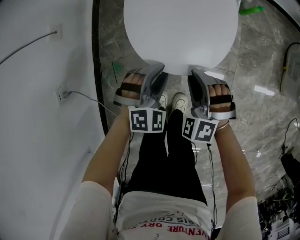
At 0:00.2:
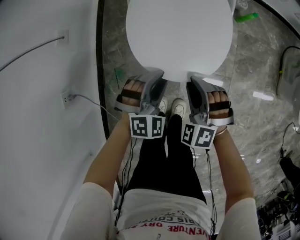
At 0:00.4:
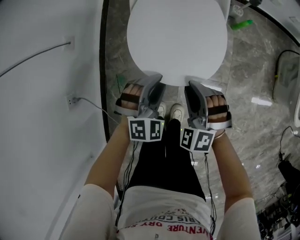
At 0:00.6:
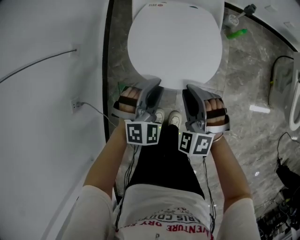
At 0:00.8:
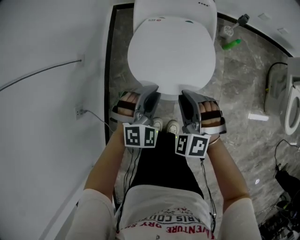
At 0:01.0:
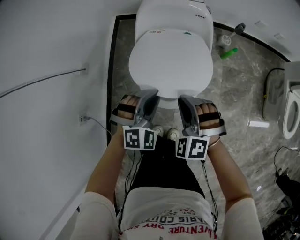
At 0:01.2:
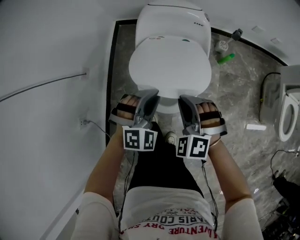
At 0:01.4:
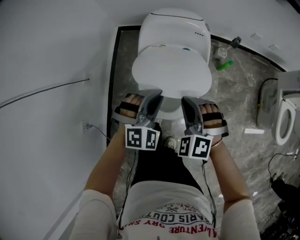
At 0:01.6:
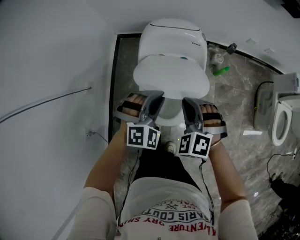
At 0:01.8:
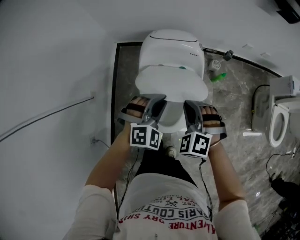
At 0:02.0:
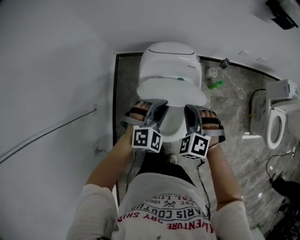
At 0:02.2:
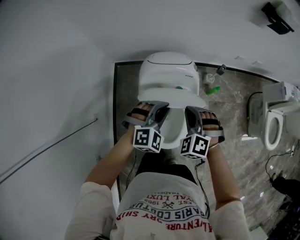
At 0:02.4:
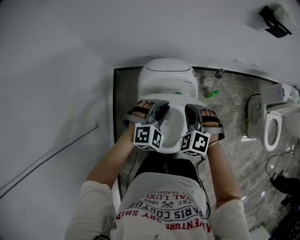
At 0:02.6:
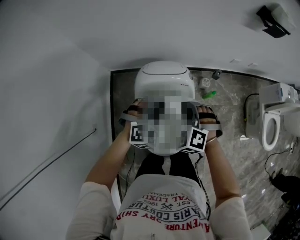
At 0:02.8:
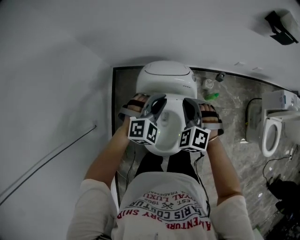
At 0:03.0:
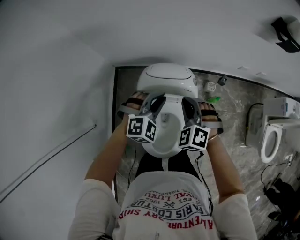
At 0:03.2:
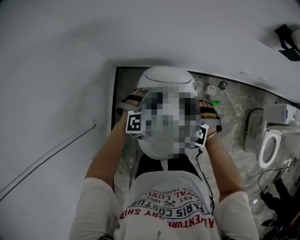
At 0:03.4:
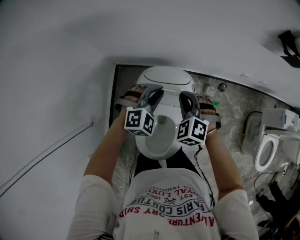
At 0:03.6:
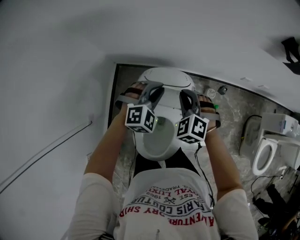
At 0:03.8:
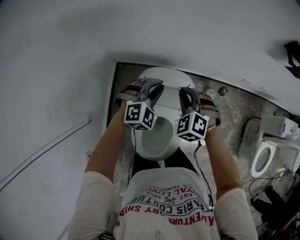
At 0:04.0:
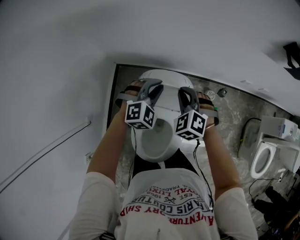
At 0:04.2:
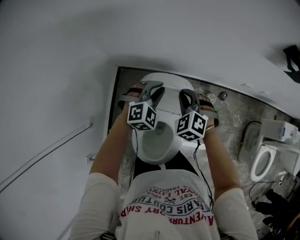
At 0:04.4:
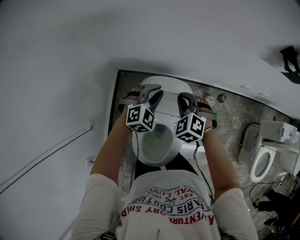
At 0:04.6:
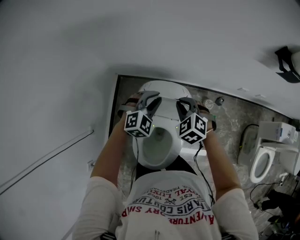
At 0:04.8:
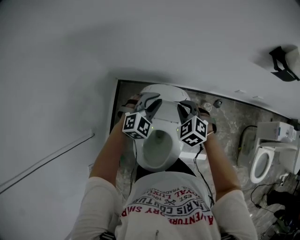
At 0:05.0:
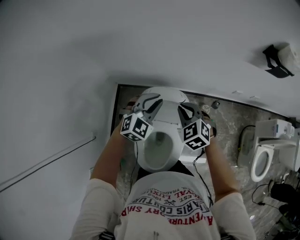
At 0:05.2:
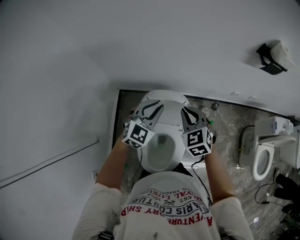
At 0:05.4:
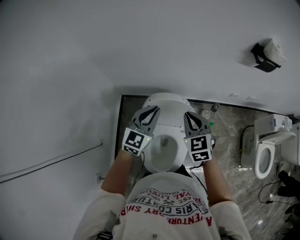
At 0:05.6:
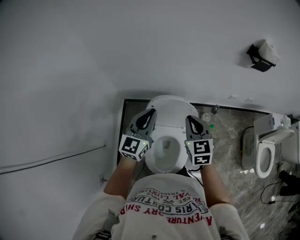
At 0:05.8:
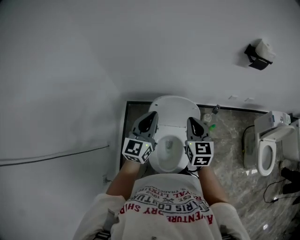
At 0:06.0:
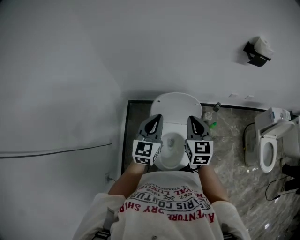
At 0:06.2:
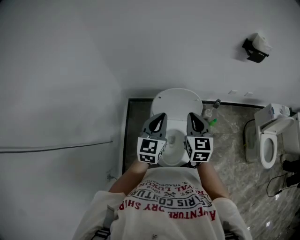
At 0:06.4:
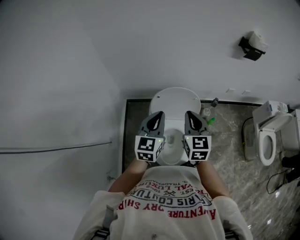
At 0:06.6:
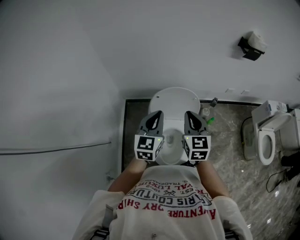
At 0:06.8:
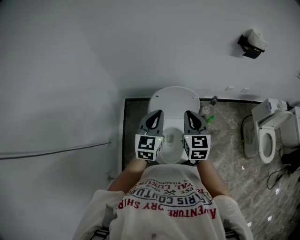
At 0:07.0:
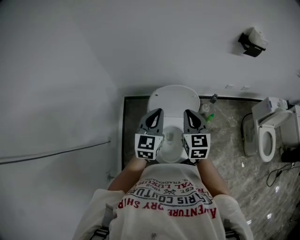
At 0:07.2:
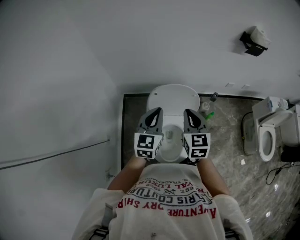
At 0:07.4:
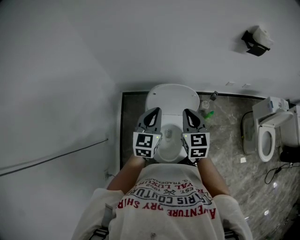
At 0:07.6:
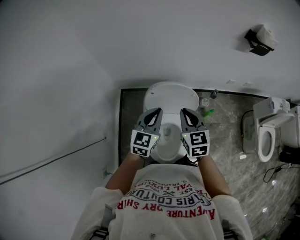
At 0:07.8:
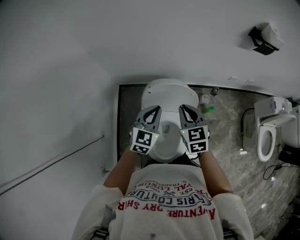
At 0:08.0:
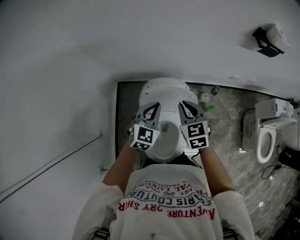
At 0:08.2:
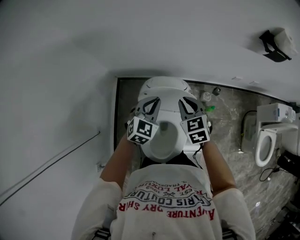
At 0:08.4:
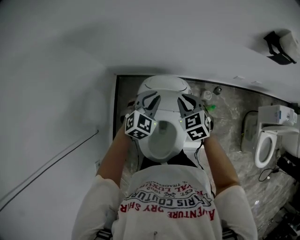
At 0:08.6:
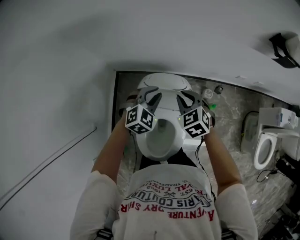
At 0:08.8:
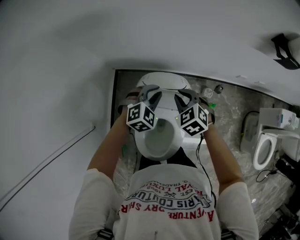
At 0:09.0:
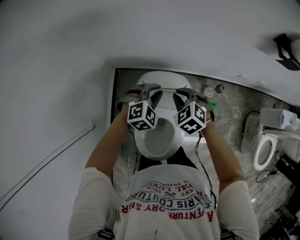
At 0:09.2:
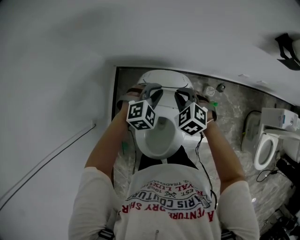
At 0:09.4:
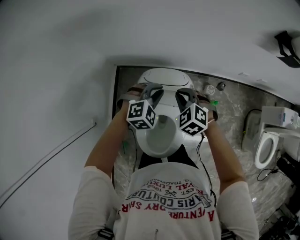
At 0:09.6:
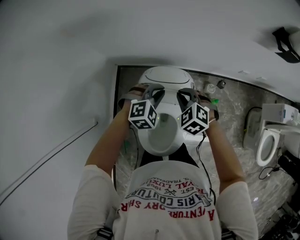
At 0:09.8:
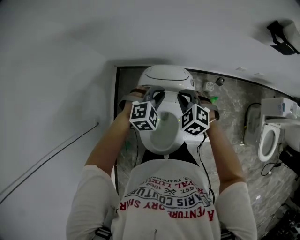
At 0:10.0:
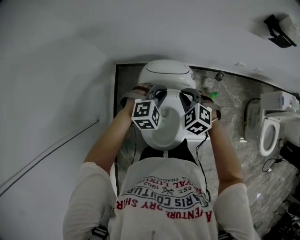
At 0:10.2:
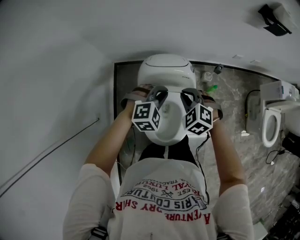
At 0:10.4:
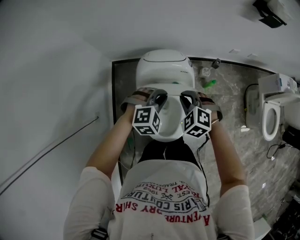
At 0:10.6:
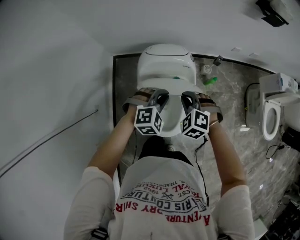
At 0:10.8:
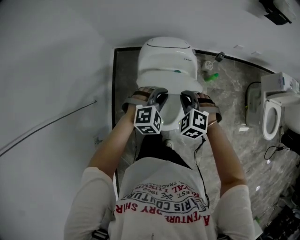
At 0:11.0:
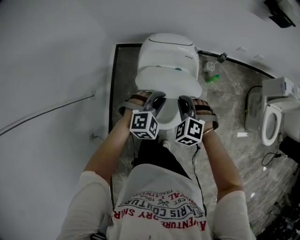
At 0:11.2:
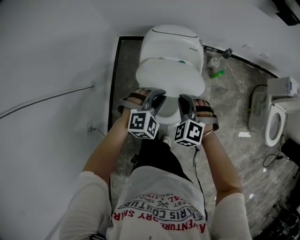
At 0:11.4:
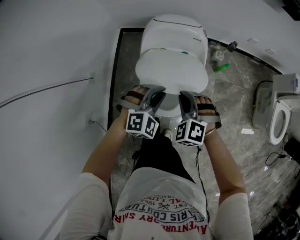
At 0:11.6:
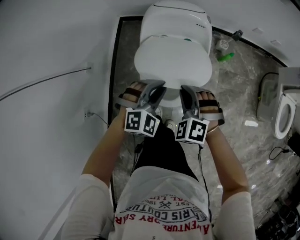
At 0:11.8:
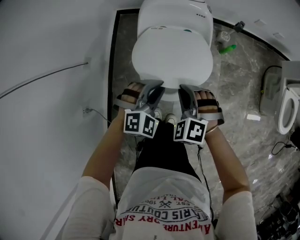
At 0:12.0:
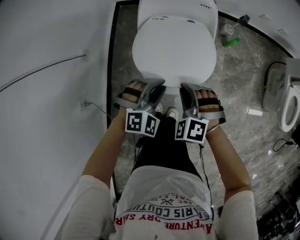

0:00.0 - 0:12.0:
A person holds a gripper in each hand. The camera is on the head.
0:00.0 - 0:01.6: Both grippers travel together upward and forward, some 35 cm. The left gripper closes its fingers.
0:01.6 - 0:03.0: Both grippers move forward, approximately 25 cm.
0:03.0 - 0:04.4: Both grippers travel together forward, some 10 cm.
0:04.4 - 0:06.0: Both grippers move backward and upward, about 30 cm. The right gripper twists approximately 50 degrees clockwise, seen from behind. Meanwhile the left gripper angles its fingers upward, by some 30 degrees.
0:06.0 - 0:07.6: The left gripper heads downward, covering approximately 5 cm. Meanwhile the right gripper changes place by approximately 5 cm.
0:07.6 - 0:09.0: Both grippers travel together forward and downward, approximately 20 cm. The left gripper tilts its fingers some 30 degrees downward. The right gripper turns by approximately 40 degrees.
0:09.0 - 0:10.4: The grippers both shift backward by about 20 cm.
0:10.4 - 0:12.0: Both grippers travel together backward and downward, some 30 cm.

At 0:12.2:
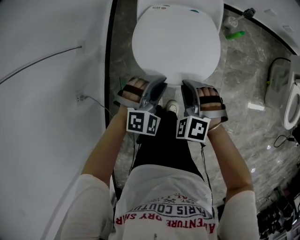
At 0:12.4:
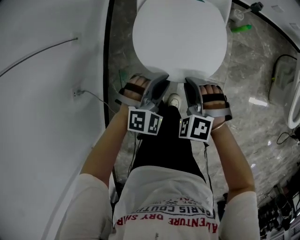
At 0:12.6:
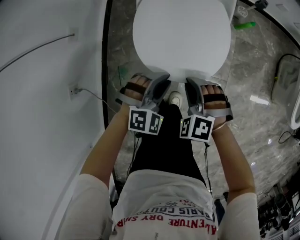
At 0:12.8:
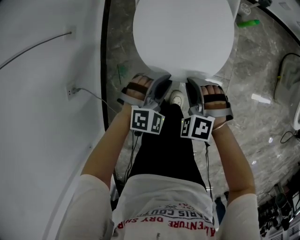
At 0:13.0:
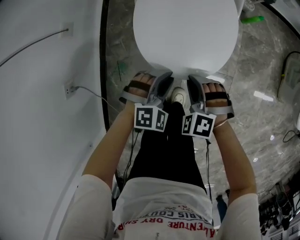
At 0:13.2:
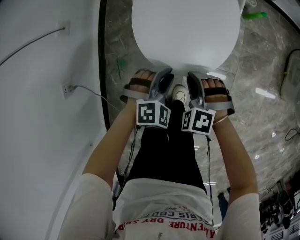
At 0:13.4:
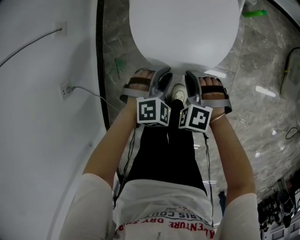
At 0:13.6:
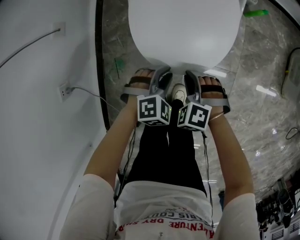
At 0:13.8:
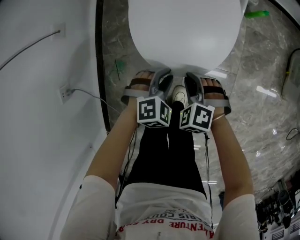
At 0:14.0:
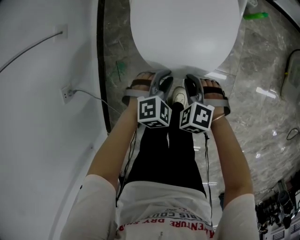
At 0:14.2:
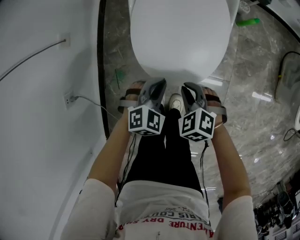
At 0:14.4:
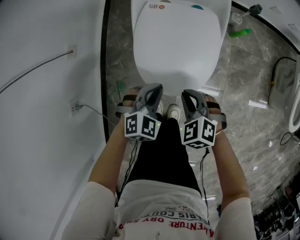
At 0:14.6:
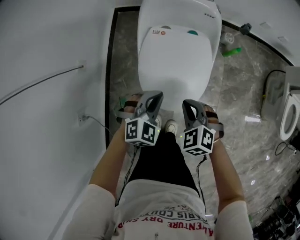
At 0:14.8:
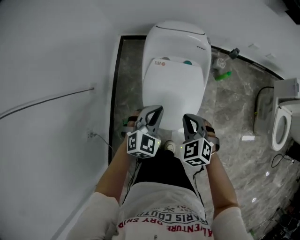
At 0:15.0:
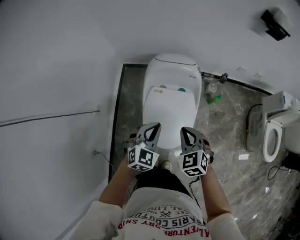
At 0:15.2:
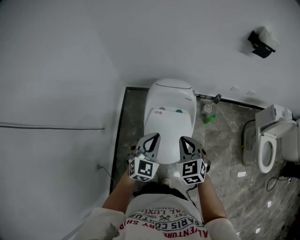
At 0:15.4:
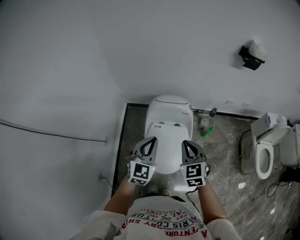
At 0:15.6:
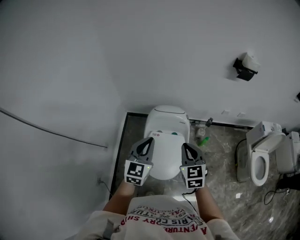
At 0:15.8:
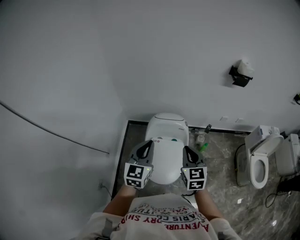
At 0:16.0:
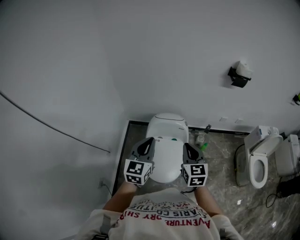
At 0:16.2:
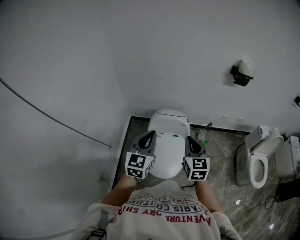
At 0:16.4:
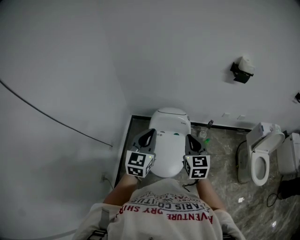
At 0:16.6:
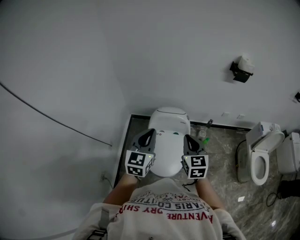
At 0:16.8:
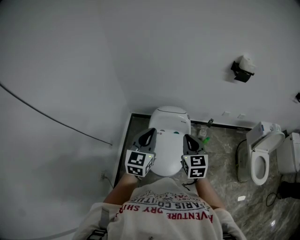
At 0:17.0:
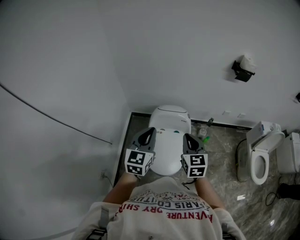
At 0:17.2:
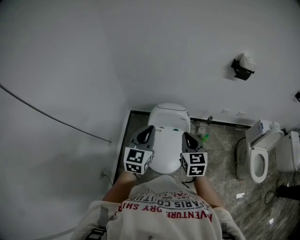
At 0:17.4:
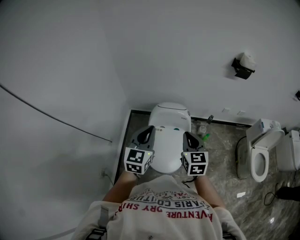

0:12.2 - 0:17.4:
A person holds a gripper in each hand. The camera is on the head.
0:12.2 - 0:14.0: Both grippers move downward, roughly 20 cm. The left gripper changes its angle by approximately 20 degrees.
0:14.0 - 0:15.6: Both grippers travel together upward, some 60 cm. The right gripper points its fingers about 40 degrees further upward. The left gripper tilts its fingers approximately 50 degrees upward, and closes its fingers.
0:15.6 - 0:17.4: The two grippers go about 5 cm upward.

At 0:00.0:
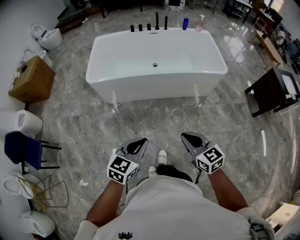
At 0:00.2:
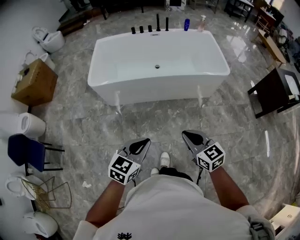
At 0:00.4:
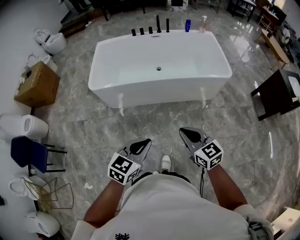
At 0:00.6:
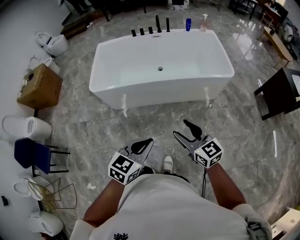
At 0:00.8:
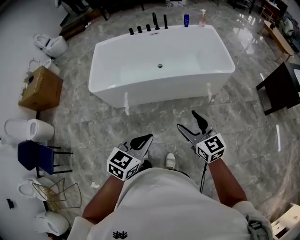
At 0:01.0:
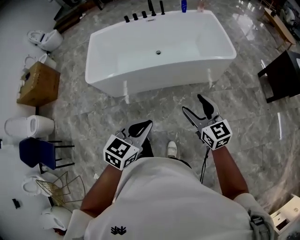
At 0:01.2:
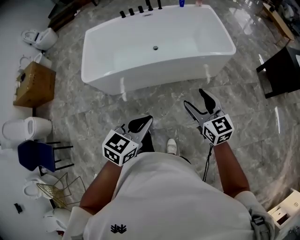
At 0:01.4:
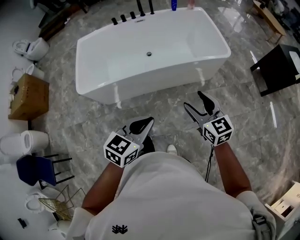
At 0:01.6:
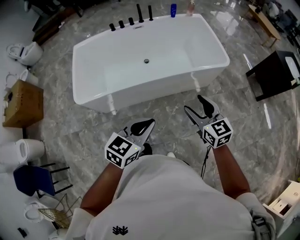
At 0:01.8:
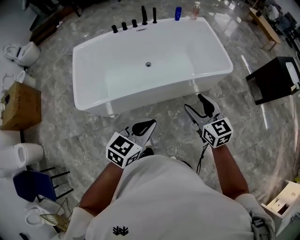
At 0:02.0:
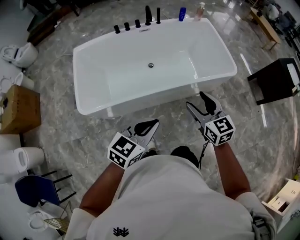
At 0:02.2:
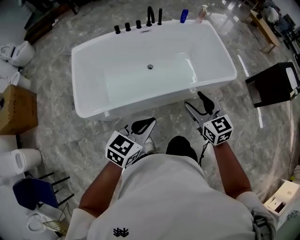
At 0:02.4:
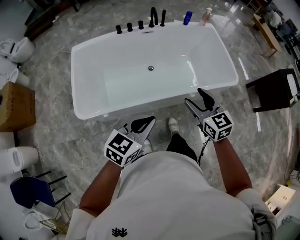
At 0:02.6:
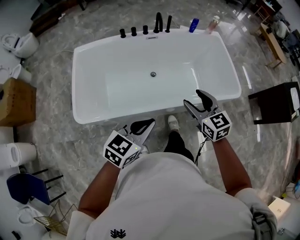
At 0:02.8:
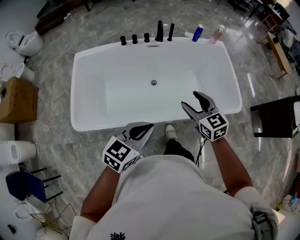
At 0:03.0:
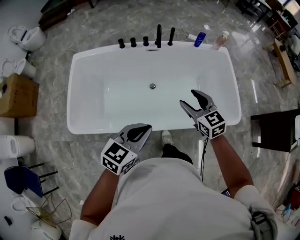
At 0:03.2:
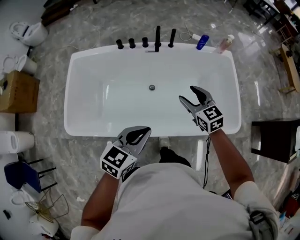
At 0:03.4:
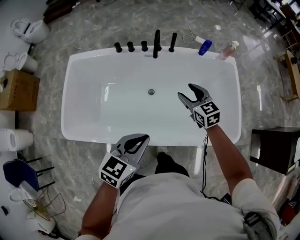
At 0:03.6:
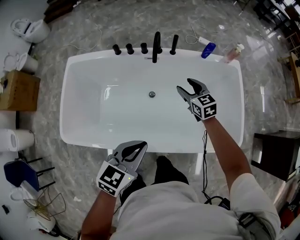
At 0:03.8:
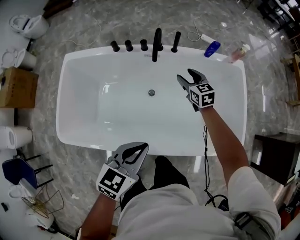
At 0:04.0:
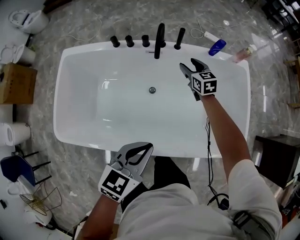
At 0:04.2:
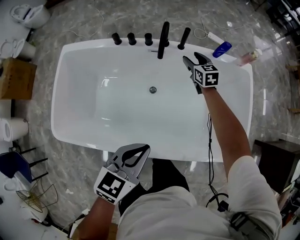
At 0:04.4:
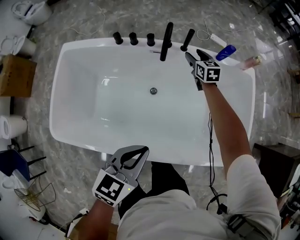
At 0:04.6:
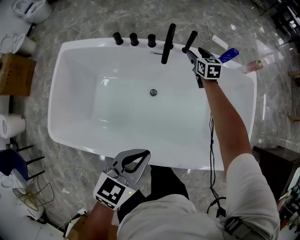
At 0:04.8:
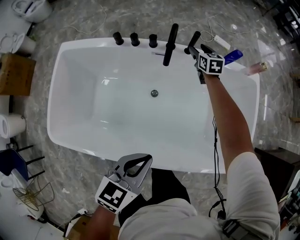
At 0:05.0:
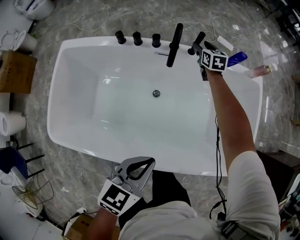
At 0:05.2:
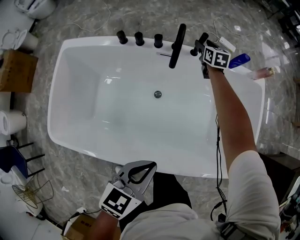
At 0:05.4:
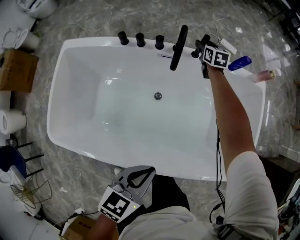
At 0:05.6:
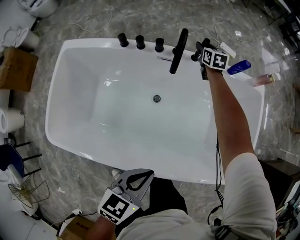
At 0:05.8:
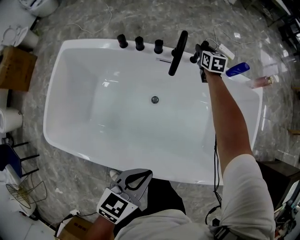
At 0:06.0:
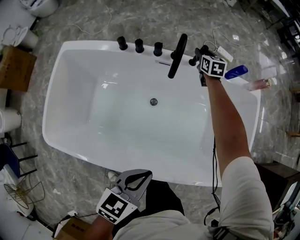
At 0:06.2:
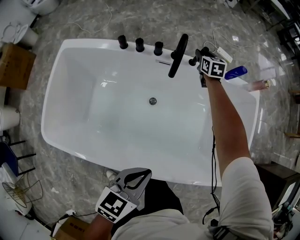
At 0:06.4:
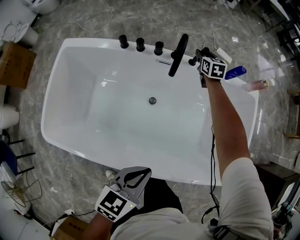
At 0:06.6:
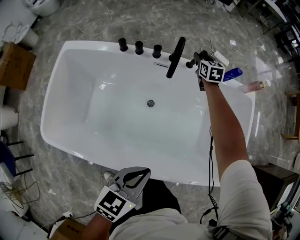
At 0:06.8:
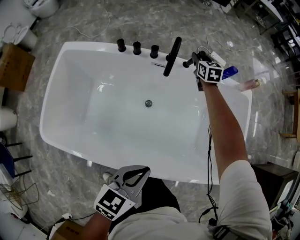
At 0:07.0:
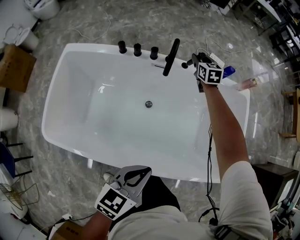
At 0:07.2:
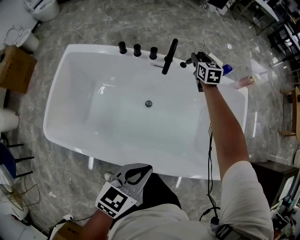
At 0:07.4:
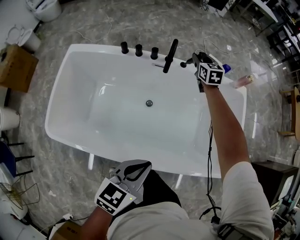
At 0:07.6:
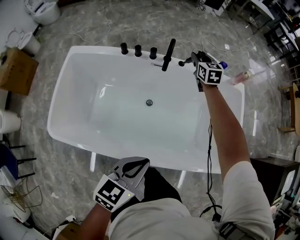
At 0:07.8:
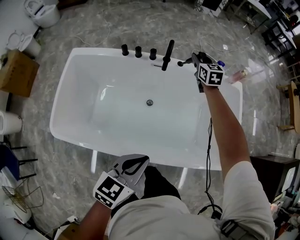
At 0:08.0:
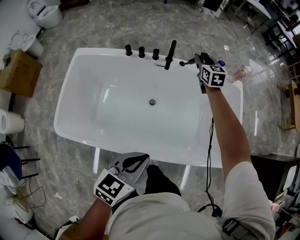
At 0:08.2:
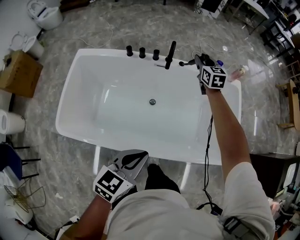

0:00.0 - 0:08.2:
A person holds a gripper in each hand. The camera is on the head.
0:00.0 - 0:01.6: Both grippers travel together forward, some 30 cm. The right gripper opens up.
0:01.6 - 0:03.2: The pair of grippers is taken forward, roughly 50 cm. The right gripper turns by approximately 20 degrees.
0:03.2 - 0:05.0: The left gripper moves forward and downward, some 20 cm. The right gripper goes about 50 cm forward and downward.
0:05.0 - 0:06.6: The grippers stay close to where they were, moving slightly.
0:06.6 - 0:08.2: The right gripper heads upward and backward, covering approximately 25 cm. The left gripper moves upward and backward, some 15 cm.
